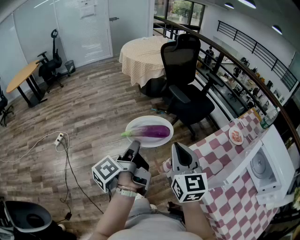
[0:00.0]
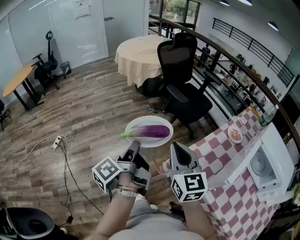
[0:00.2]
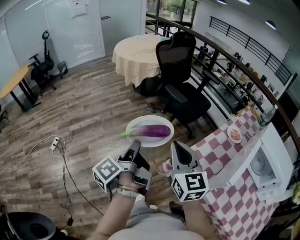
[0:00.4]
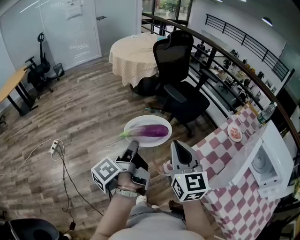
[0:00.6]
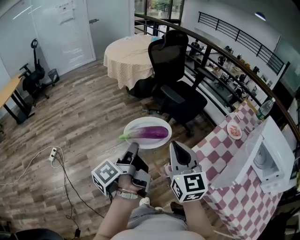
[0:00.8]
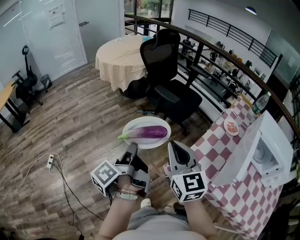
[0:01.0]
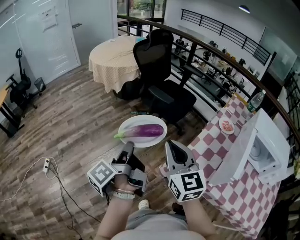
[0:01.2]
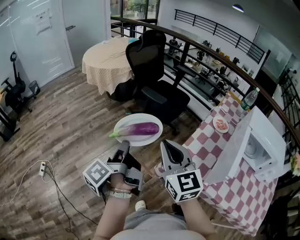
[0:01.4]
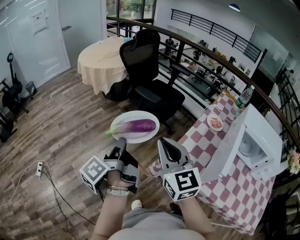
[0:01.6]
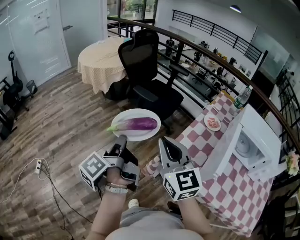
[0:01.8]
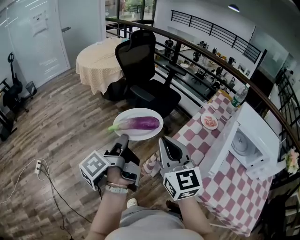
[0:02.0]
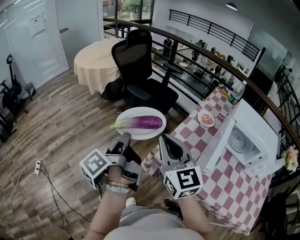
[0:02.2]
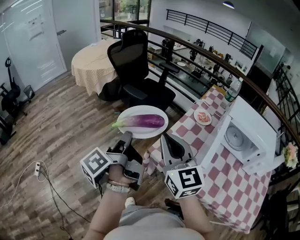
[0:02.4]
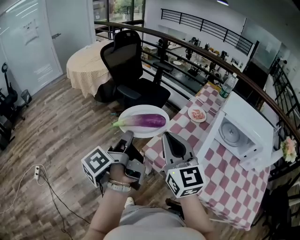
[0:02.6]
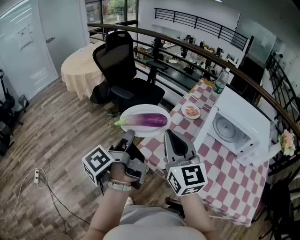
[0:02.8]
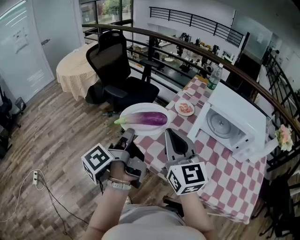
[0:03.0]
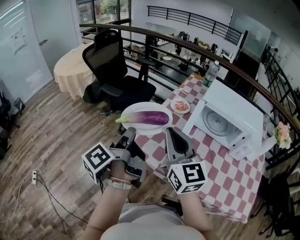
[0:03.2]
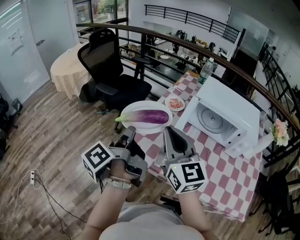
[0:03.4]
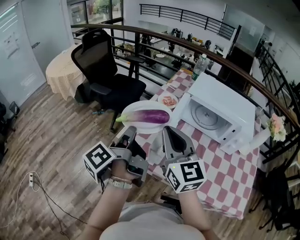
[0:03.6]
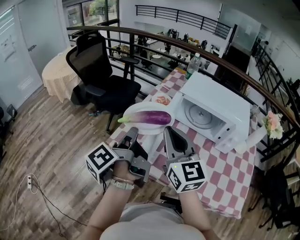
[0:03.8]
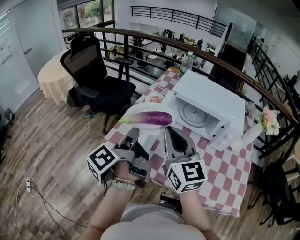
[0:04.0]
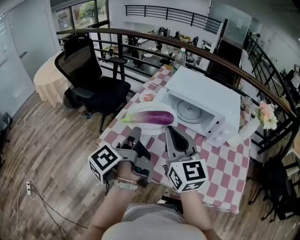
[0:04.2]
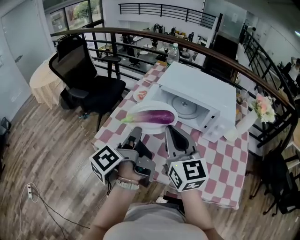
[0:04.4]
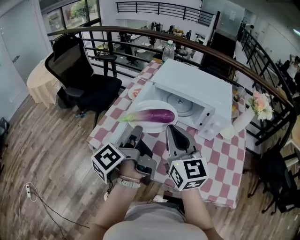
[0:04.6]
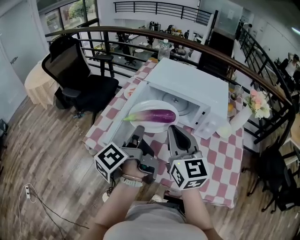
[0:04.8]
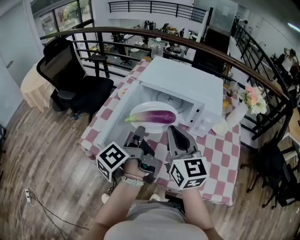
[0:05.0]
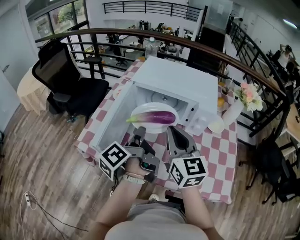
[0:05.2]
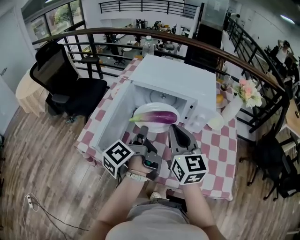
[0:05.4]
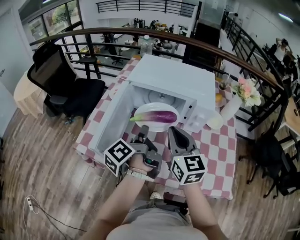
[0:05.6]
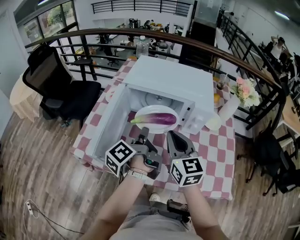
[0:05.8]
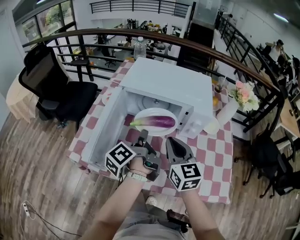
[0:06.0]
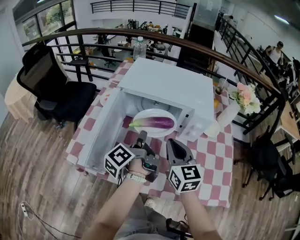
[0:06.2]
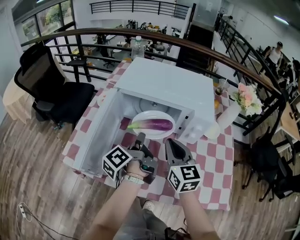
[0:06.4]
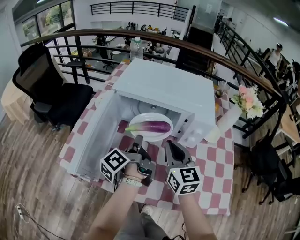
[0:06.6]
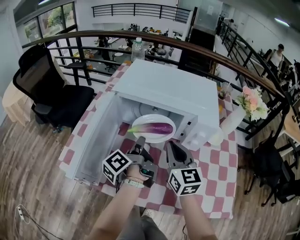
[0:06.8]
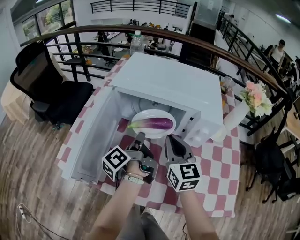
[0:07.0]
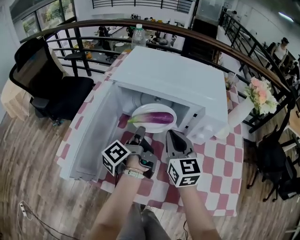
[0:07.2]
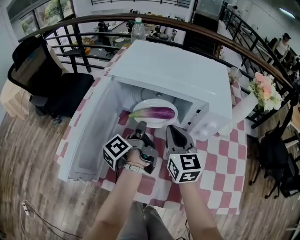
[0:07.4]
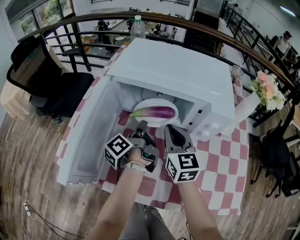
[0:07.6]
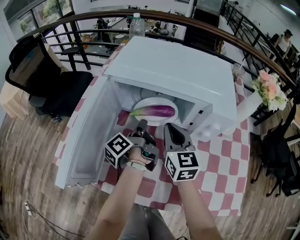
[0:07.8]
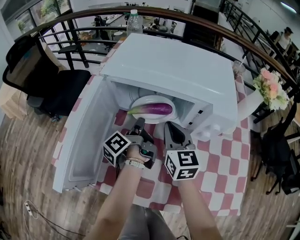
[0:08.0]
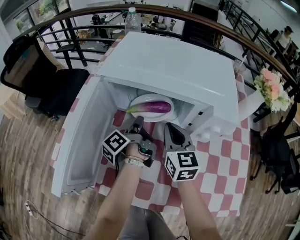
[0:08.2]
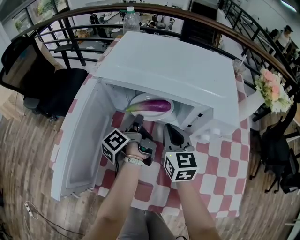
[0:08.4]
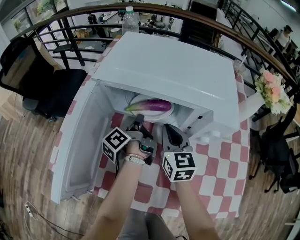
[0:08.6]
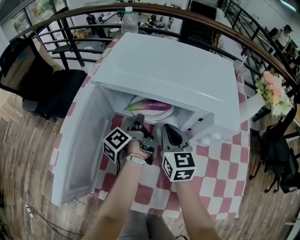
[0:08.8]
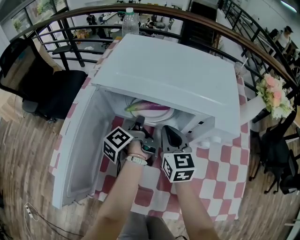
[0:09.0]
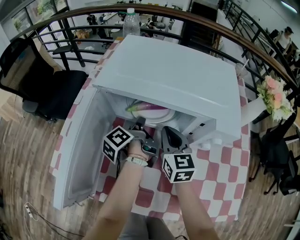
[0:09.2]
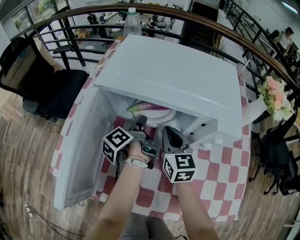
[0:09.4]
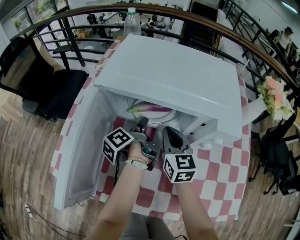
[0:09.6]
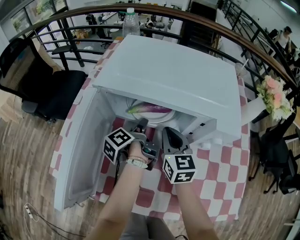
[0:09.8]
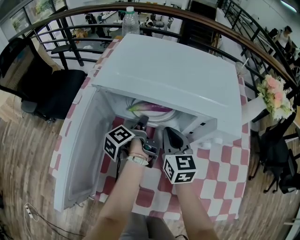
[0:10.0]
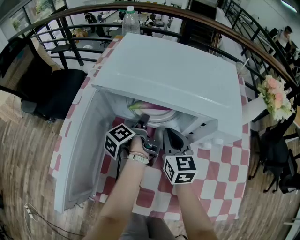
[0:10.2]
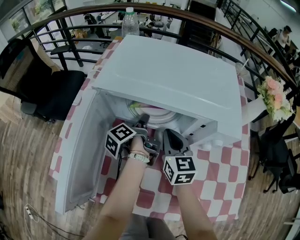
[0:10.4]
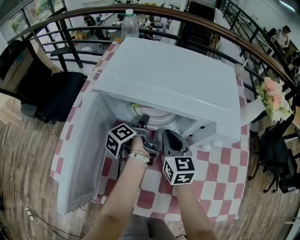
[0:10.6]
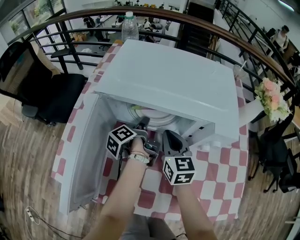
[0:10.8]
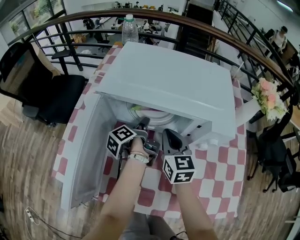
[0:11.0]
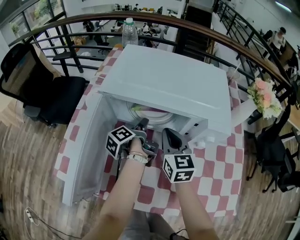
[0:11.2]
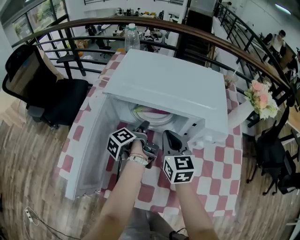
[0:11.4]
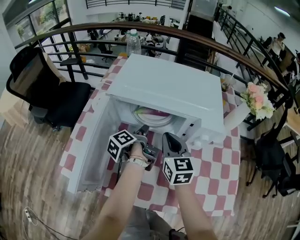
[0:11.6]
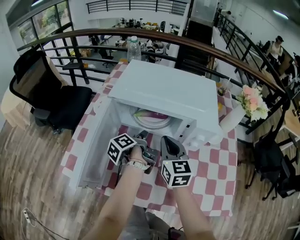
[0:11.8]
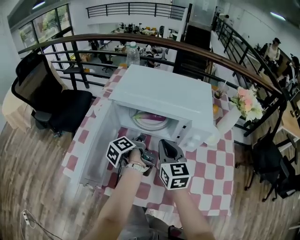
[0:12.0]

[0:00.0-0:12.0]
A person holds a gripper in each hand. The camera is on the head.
0:00.0 to 0:01.6: The right gripper shifts by about 5 cm.
0:01.6 to 0:03.0: The right gripper moves approximately 25 cm.
0:03.0 to 0:04.4: The right gripper moves roughly 25 cm.
0:04.4 to 0:06.0: The right gripper shifts by some 20 cm.
0:06.0 to 0:07.6: The right gripper ends up roughly 15 cm from where it was.
0:07.6 to 0:09.0: The right gripper ends up some 5 cm from where it was.
0:10.4 to 0:12.0: The right gripper shifts approximately 10 cm upward.

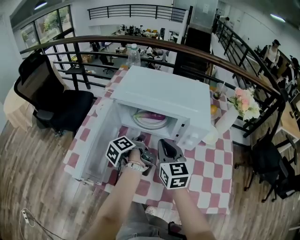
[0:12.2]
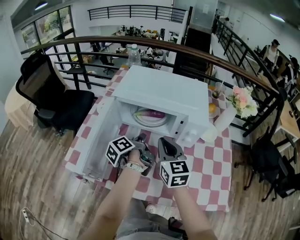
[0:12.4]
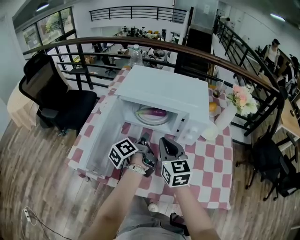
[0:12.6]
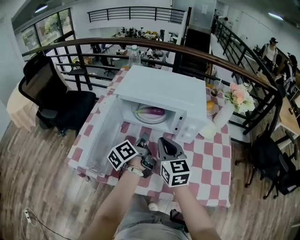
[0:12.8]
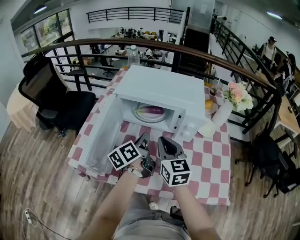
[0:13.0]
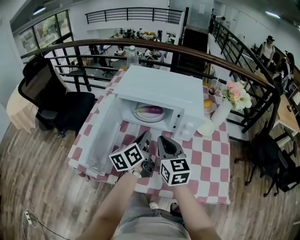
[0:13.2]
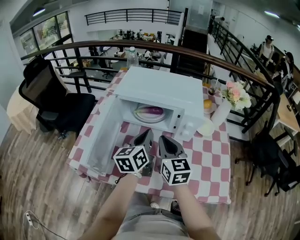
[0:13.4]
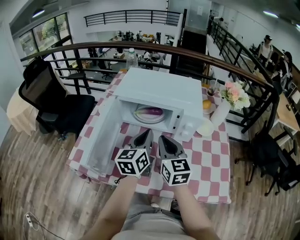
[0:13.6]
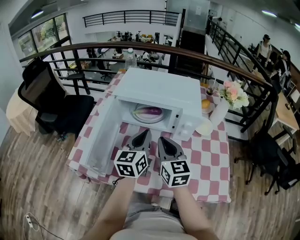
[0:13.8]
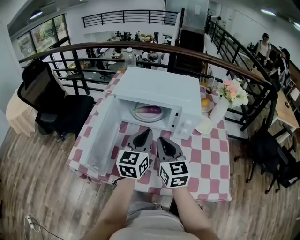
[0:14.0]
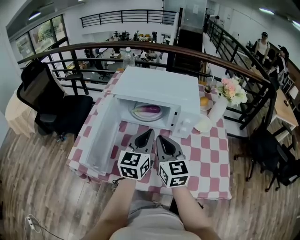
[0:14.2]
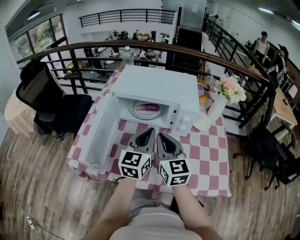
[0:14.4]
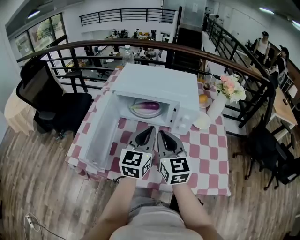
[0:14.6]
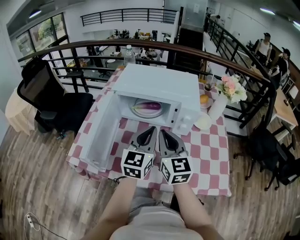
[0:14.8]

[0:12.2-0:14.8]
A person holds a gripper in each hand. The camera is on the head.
0:12.2 to 0:13.4: The right gripper moves some 5 cm.

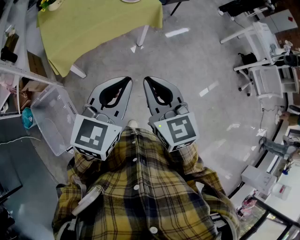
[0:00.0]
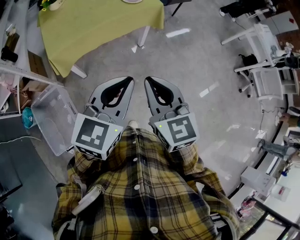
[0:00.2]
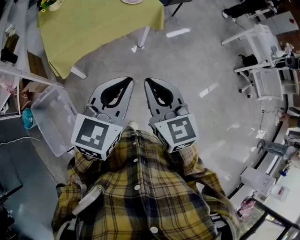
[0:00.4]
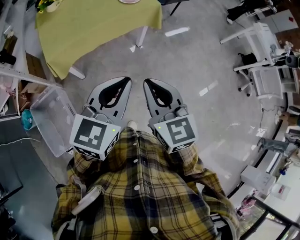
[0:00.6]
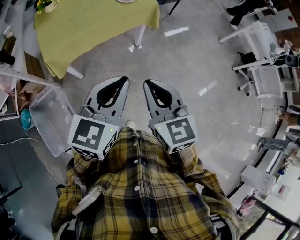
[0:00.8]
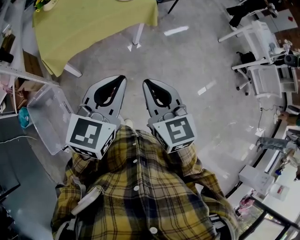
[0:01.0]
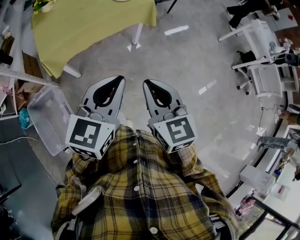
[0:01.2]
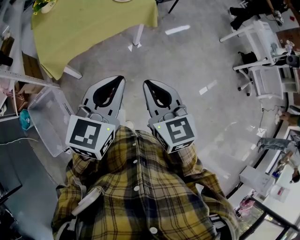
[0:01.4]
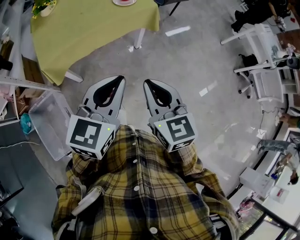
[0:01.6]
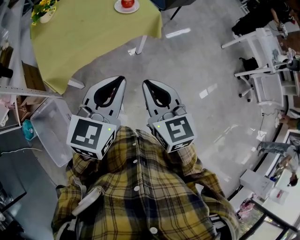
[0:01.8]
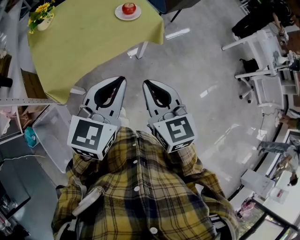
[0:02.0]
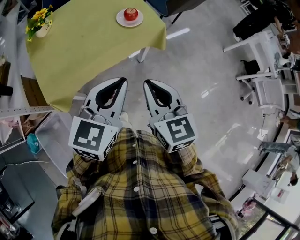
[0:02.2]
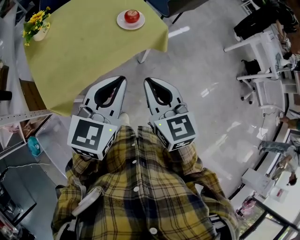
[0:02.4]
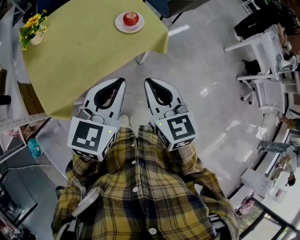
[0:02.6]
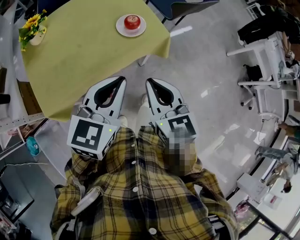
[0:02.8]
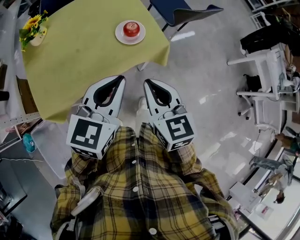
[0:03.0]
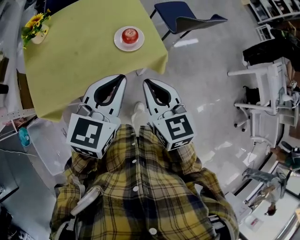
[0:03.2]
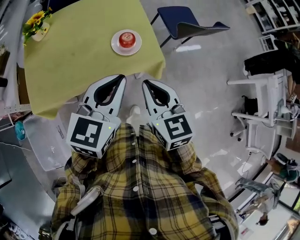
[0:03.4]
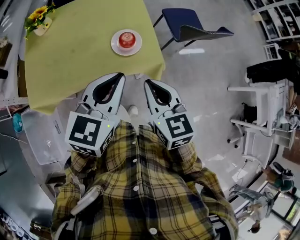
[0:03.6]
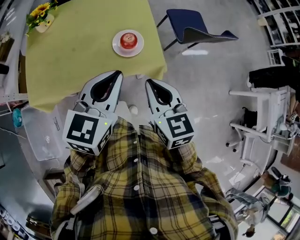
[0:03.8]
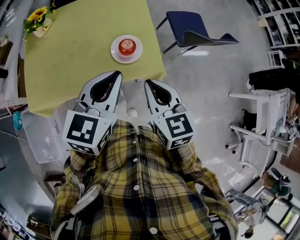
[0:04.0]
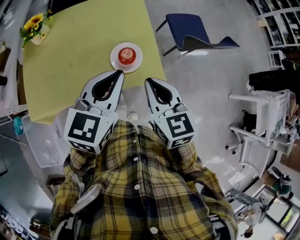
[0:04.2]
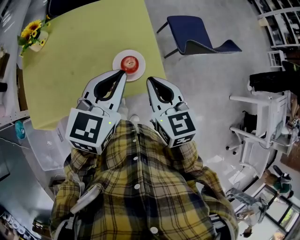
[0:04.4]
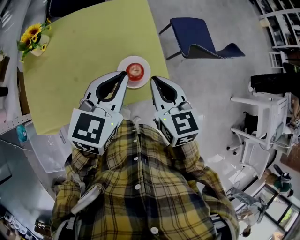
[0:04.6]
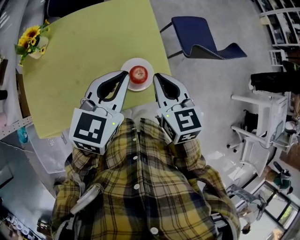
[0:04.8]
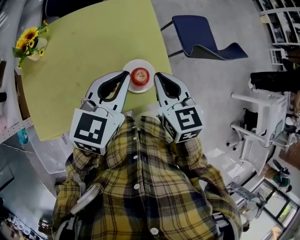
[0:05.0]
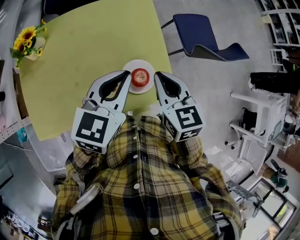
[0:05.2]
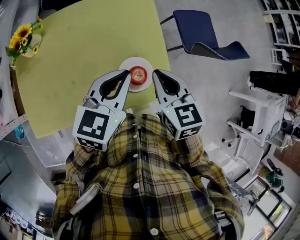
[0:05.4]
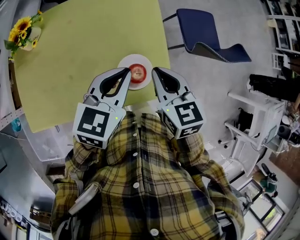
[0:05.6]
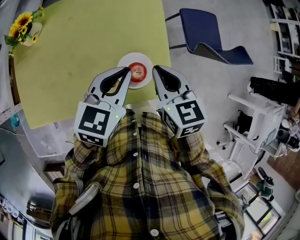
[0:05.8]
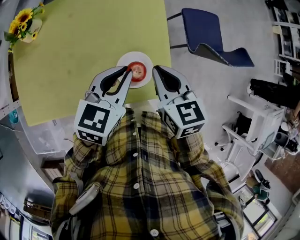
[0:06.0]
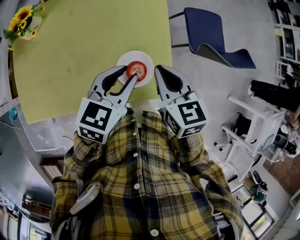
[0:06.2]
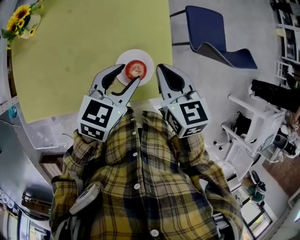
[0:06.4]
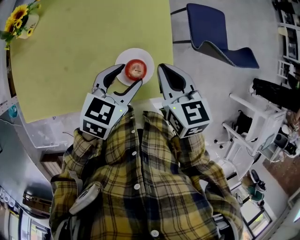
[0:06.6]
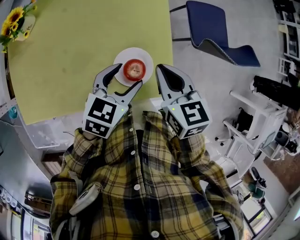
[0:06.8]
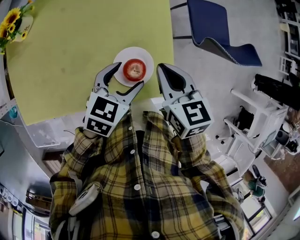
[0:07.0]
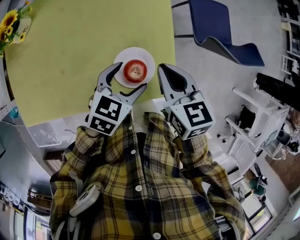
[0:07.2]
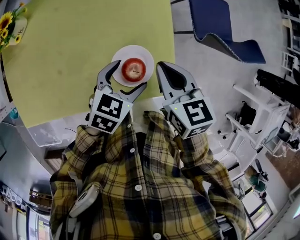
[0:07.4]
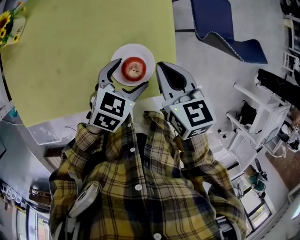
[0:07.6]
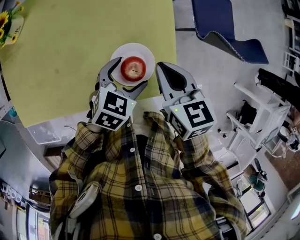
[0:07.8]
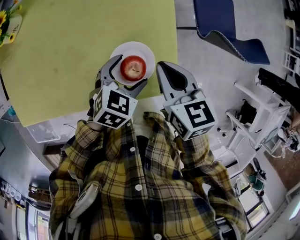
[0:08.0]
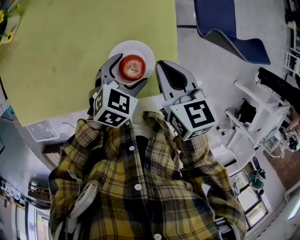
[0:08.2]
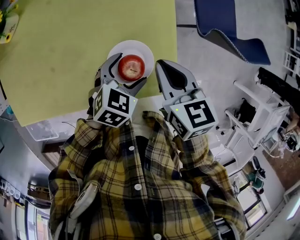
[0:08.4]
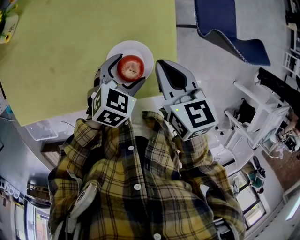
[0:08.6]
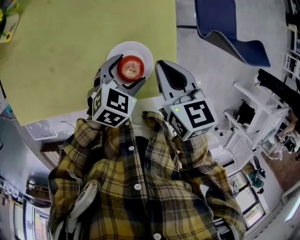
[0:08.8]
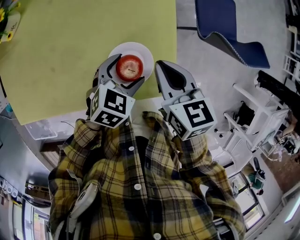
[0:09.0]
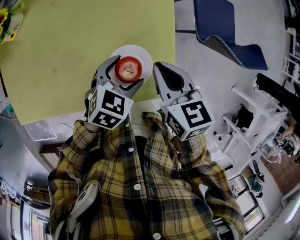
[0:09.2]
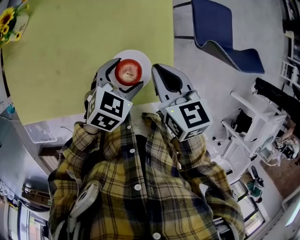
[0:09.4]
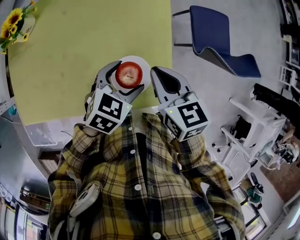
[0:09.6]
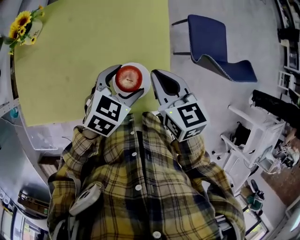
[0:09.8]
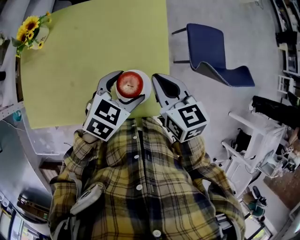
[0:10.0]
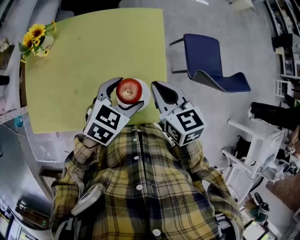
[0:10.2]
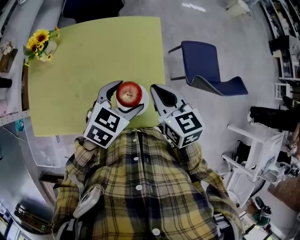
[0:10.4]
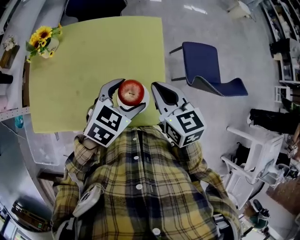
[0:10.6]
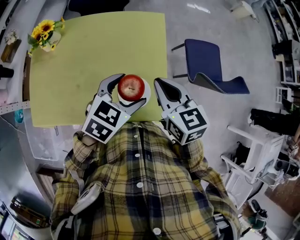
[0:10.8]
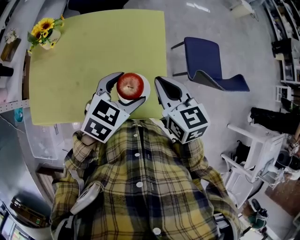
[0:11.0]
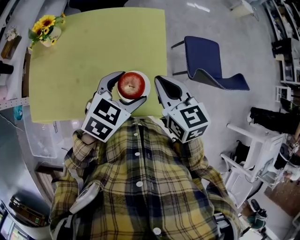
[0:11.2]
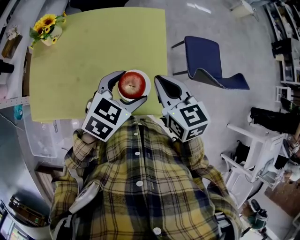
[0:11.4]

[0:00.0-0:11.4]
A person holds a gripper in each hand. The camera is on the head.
0:00.0 to 0:01.4: The right gripper moves about 5 cm.
0:01.4 to 0:02.8: Both grippers travel together forward, some 35 cm.
0:02.8 to 0:04.2: Both grippers travel together forward, about 20 cm.
0:04.2 to 0:05.6: The left gripper goes about 15 cm forward and downward. Meanwhile the right gripper travels forward by roughly 15 cm.
0:05.6 to 0:07.2: The right gripper goes about 5 cm downward, while the left gripper goes roughly 15 cm downward, and opens.
0:07.2 to 0:08.6: The left gripper shifts roughly 5 cm downward.
0:08.6 to 0:10.0: The right gripper travels upward by approximately 10 cm; the left gripper shifts about 15 cm upward.
0:10.0 to 0:11.4: The right gripper ends up some 5 cm from where it was. Meanwhile the left gripper heads upward, covering some 5 cm.
